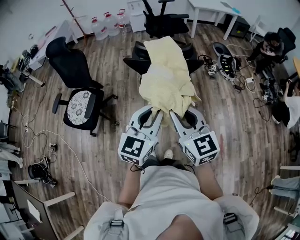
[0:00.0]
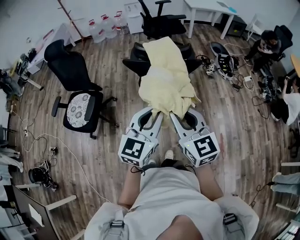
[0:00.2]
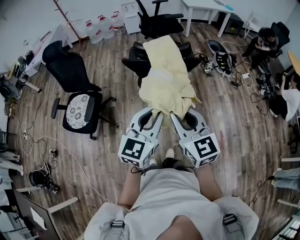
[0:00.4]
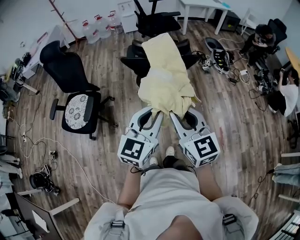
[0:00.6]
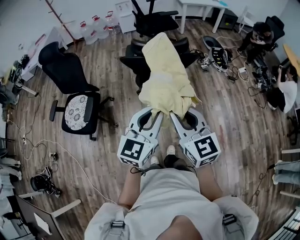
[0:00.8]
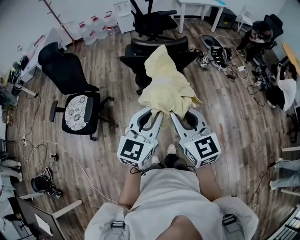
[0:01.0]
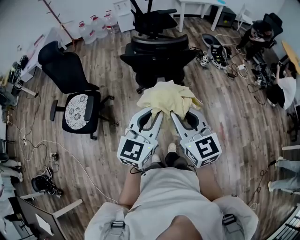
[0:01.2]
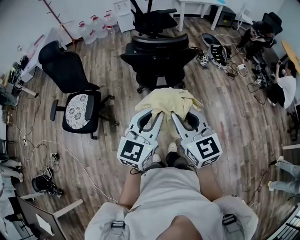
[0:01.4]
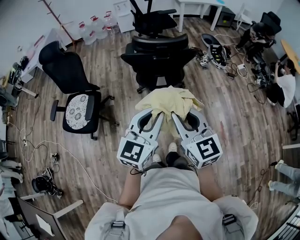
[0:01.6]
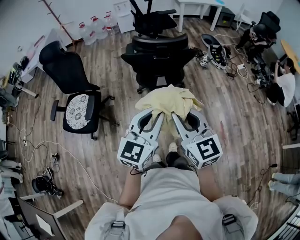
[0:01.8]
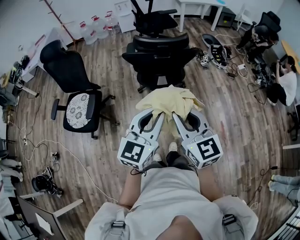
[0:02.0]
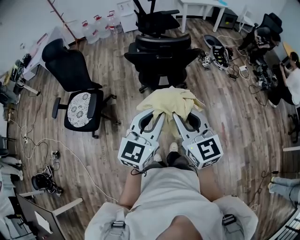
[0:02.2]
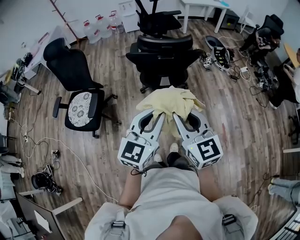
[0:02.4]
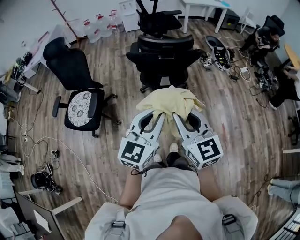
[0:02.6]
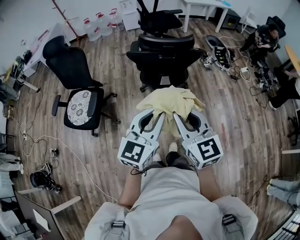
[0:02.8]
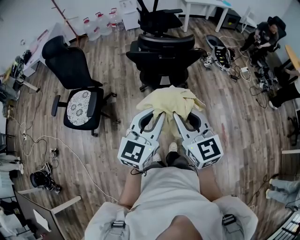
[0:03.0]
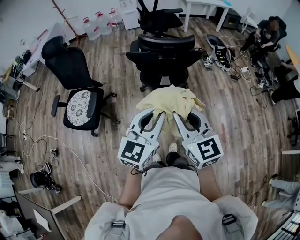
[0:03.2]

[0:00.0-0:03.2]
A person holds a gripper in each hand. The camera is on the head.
0:00.0 to 0:01.6: The grippers both shift backward by approximately 5 cm.
0:01.6 to 0:03.2: The grippers stay close to where they were, moving slightly.

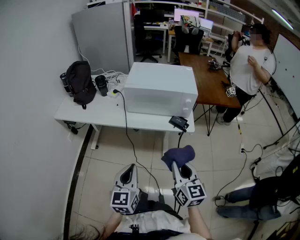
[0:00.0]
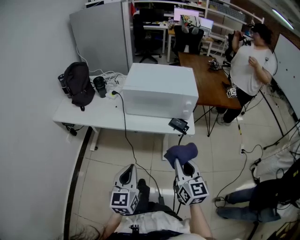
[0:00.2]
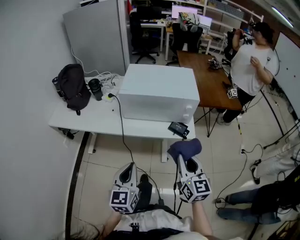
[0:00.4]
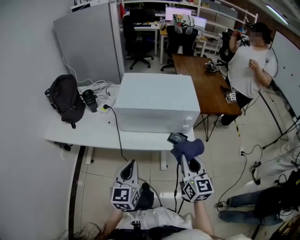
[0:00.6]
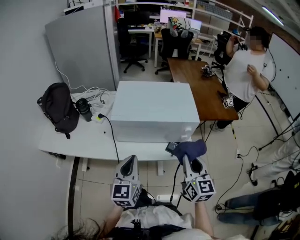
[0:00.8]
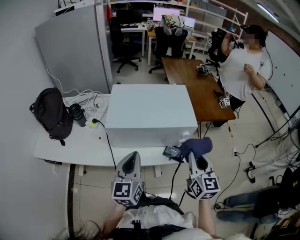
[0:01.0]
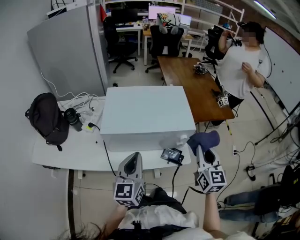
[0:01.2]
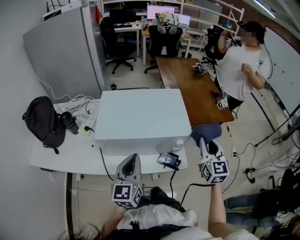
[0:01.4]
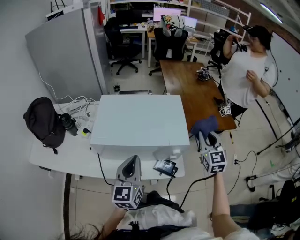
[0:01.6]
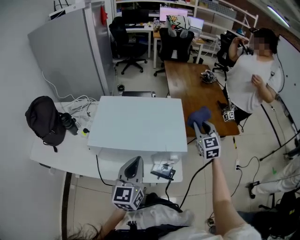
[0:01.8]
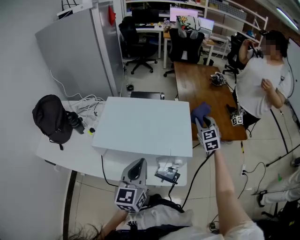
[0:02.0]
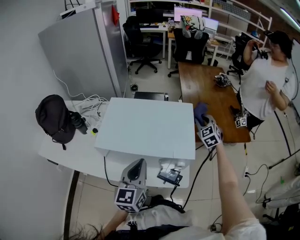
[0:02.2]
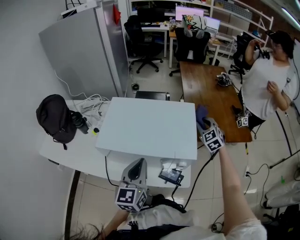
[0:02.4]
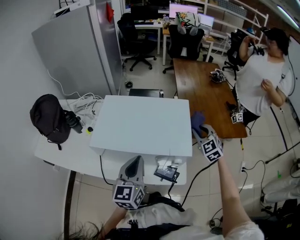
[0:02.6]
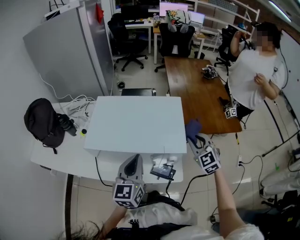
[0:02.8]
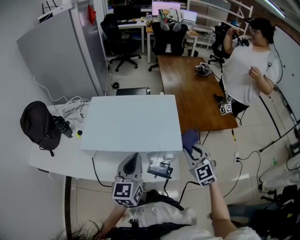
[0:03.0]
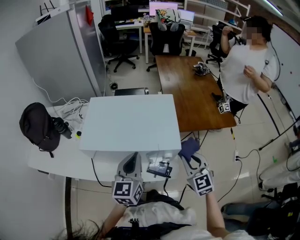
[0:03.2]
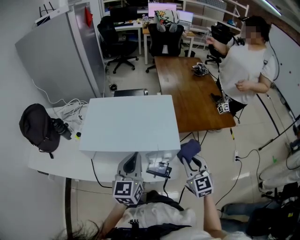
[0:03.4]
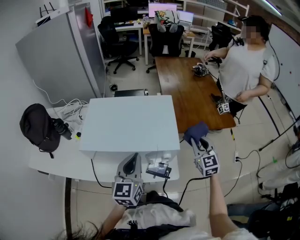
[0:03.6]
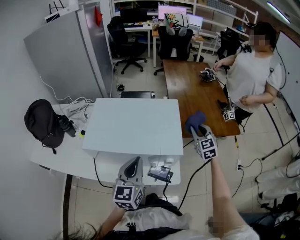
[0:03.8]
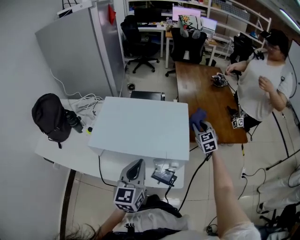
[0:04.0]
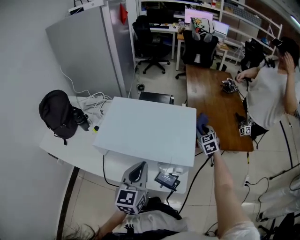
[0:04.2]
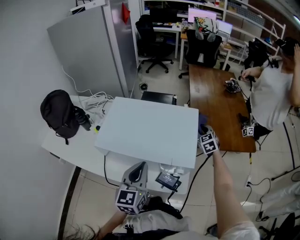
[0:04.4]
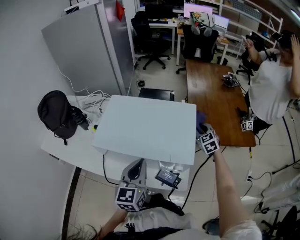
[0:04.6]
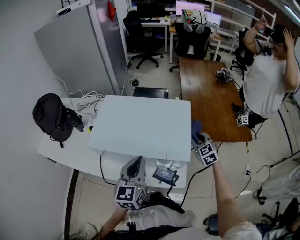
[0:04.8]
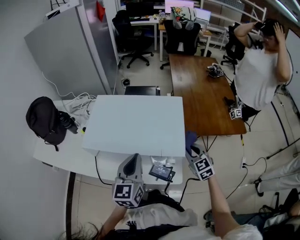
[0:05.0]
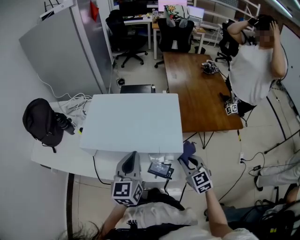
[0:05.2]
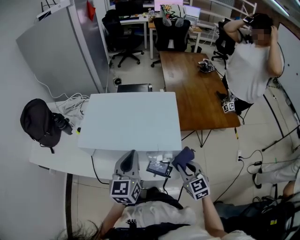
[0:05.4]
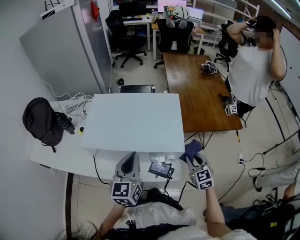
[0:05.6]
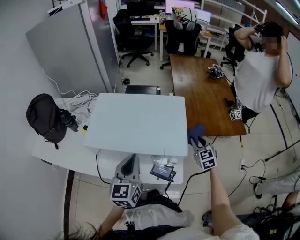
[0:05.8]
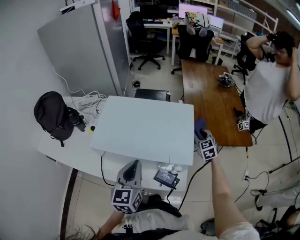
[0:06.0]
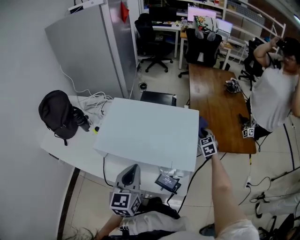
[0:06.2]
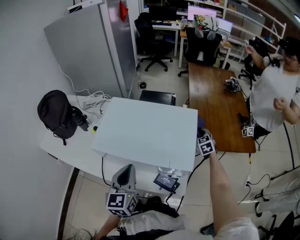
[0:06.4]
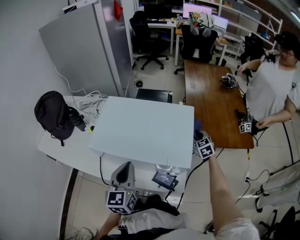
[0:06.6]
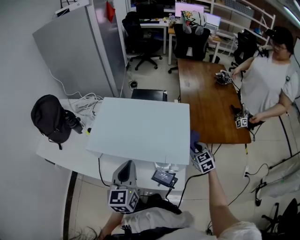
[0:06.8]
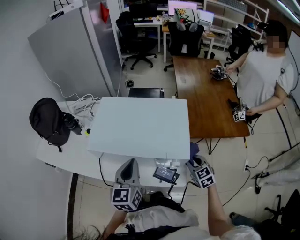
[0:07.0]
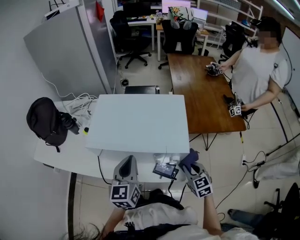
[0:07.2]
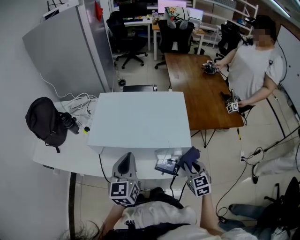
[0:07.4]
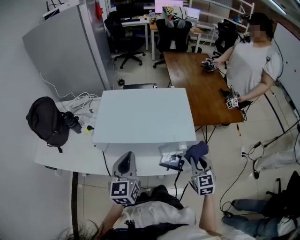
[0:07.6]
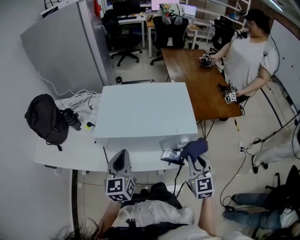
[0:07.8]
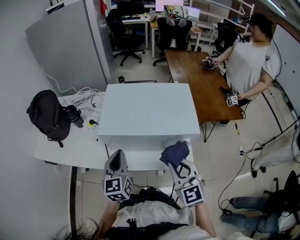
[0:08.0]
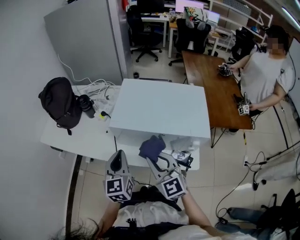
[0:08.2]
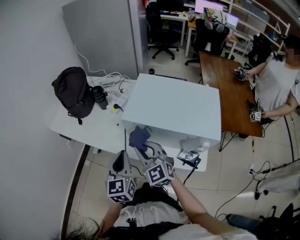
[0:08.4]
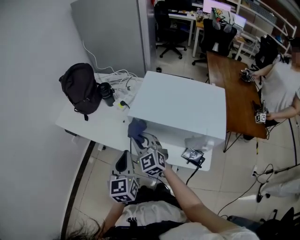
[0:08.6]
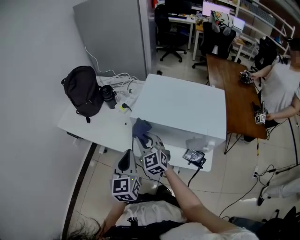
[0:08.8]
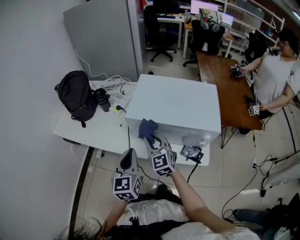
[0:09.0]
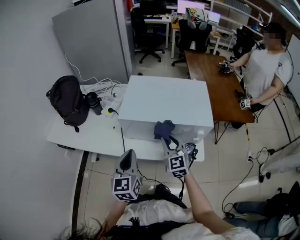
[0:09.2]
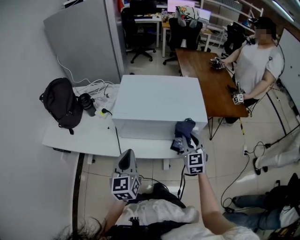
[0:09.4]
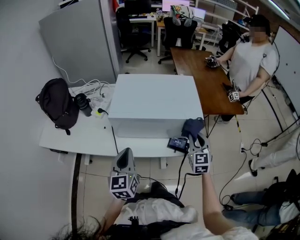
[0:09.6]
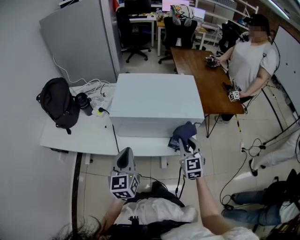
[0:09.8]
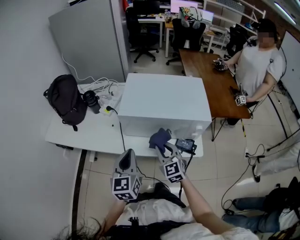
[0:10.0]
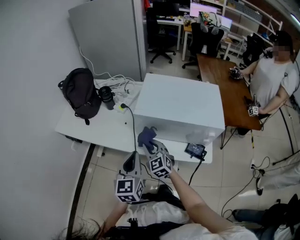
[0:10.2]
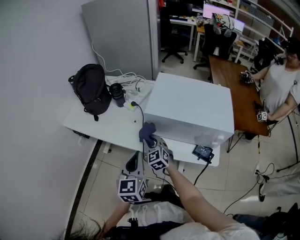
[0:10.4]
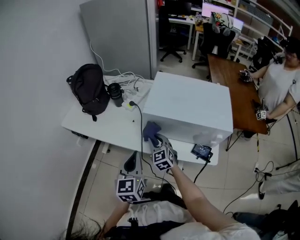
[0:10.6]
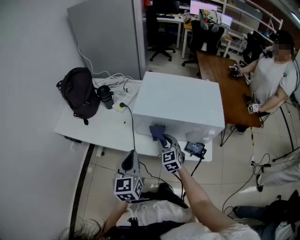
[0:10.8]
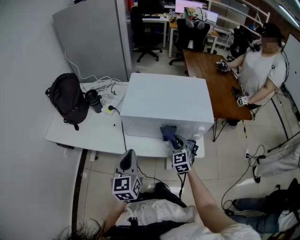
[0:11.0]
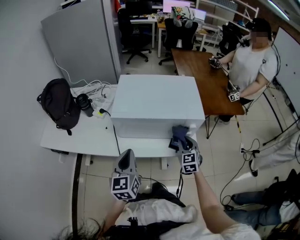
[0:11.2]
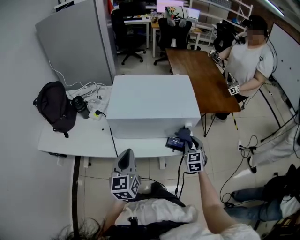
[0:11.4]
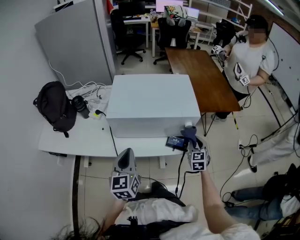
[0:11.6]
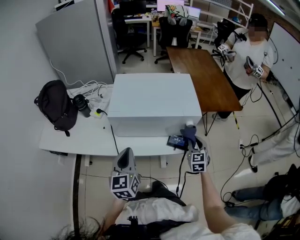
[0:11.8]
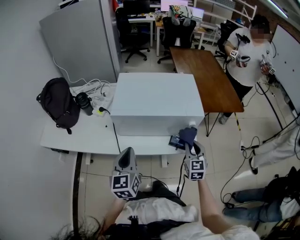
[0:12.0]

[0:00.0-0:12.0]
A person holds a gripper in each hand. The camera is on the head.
0:00.0 to 0:01.6: The right gripper is displaced forward and to the right by approximately 50 cm, and swivels some 30 degrees. The left gripper moves forward, roughly 40 cm.
0:01.6 to 0:03.0: The left gripper shifts about 5 cm to the right, while the right gripper heads downward, covering roughly 5 cm, goes forward and returns, some 20 cm each way, and turns by roughly 20 degrees.
0:03.0 to 0:04.4: The right gripper travels forward by about 25 cm.
0:04.4 to 0:06.0: The right gripper goes backward and returns, roughly 30 cm each way.
0:06.0 to 0:07.6: The right gripper heads backward, covering roughly 25 cm; the left gripper moves to the left, some 5 cm.
0:07.6 to 0:09.0: The left gripper shifts by roughly 15 cm. Meanwhile the right gripper ends up some 35 cm from where it was, and rotates approximately 30 degrees.
0:09.0 to 0:10.4: The right gripper shifts about 10 cm downward, and moves roughly 30 cm to the right and comes back, while the left gripper shifts by about 5 cm.
0:10.4 to 0:12.0: The left gripper changes place by some 10 cm; the right gripper changes place by about 40 cm, and rotates approximately 40 degrees.

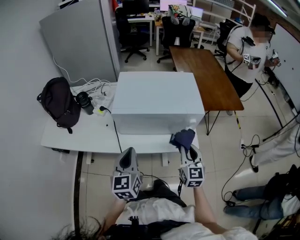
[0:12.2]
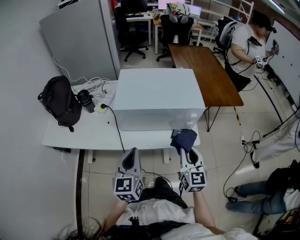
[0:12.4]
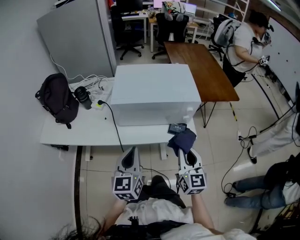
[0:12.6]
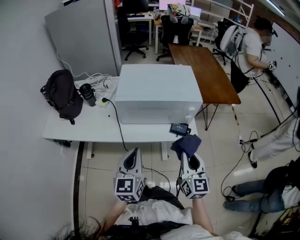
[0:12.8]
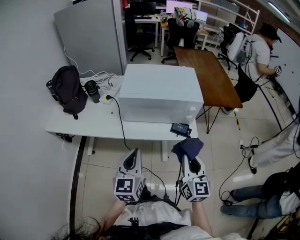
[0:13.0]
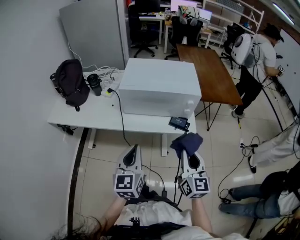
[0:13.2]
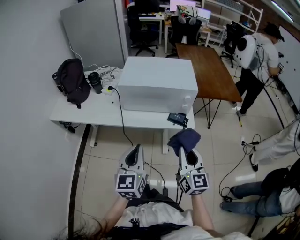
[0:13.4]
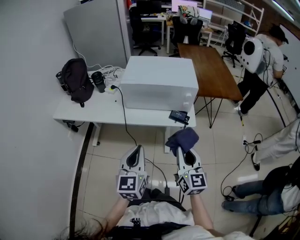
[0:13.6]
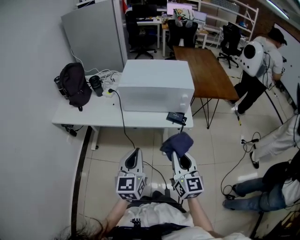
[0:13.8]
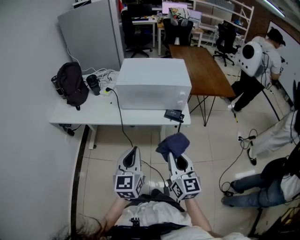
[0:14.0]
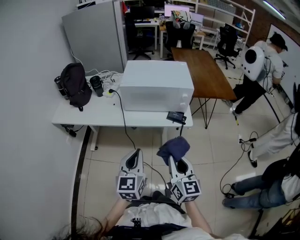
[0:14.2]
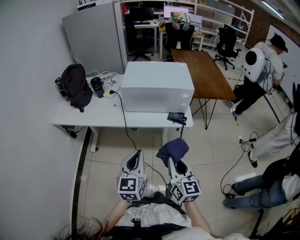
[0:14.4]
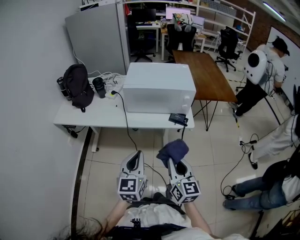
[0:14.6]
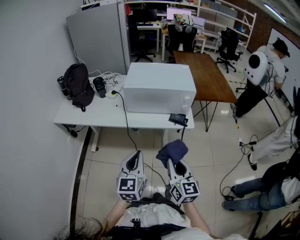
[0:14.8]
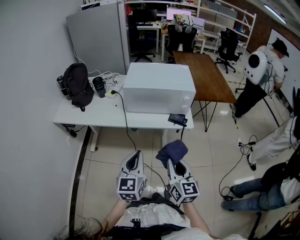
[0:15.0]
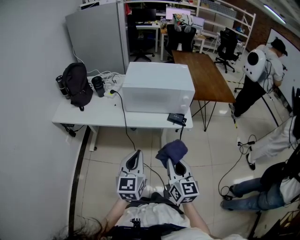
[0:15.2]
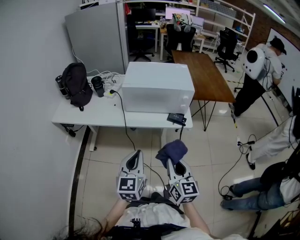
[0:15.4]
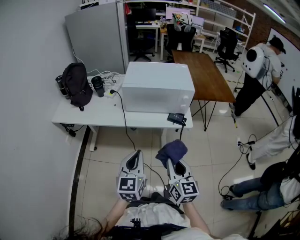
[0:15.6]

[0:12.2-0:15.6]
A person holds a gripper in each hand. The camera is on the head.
0:12.2 to 0:13.8: Both grippers travel together backward, about 20 cm.
0:13.8 to 0:15.6: The right gripper ends up approximately 5 cm from where it was.

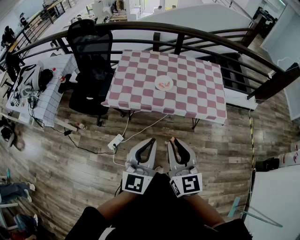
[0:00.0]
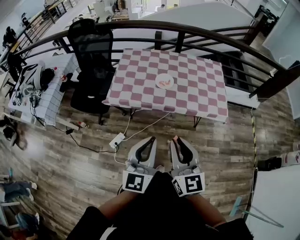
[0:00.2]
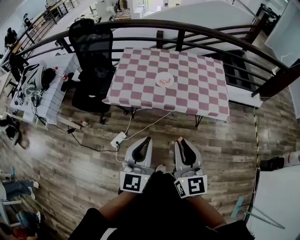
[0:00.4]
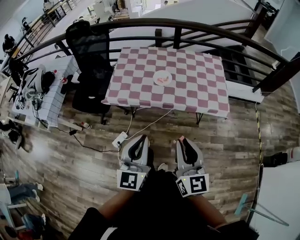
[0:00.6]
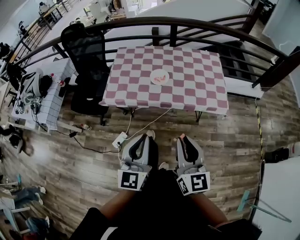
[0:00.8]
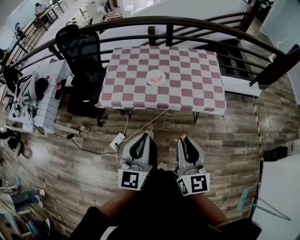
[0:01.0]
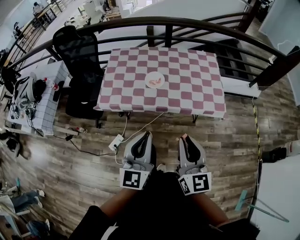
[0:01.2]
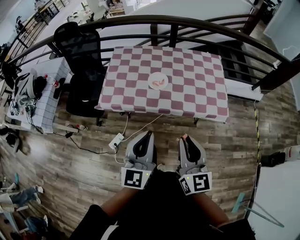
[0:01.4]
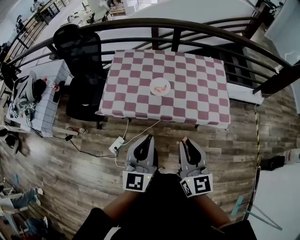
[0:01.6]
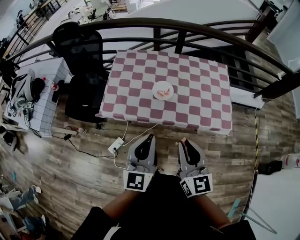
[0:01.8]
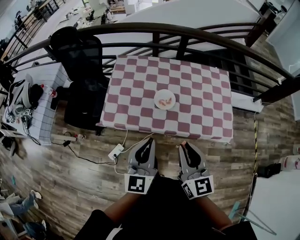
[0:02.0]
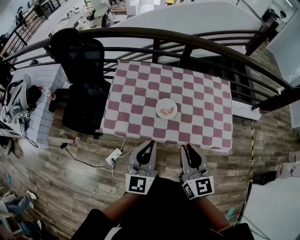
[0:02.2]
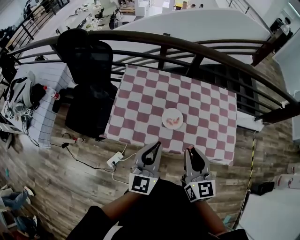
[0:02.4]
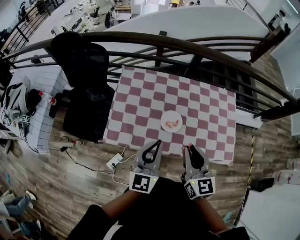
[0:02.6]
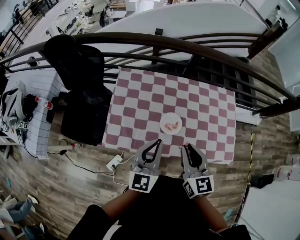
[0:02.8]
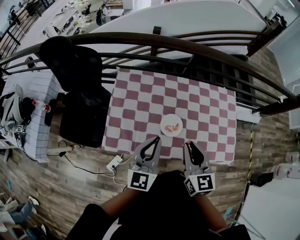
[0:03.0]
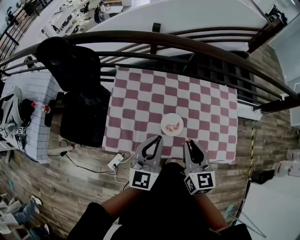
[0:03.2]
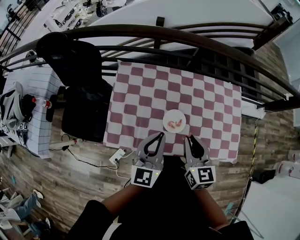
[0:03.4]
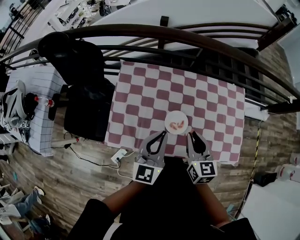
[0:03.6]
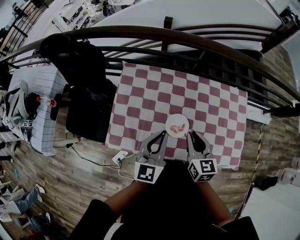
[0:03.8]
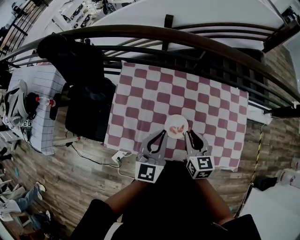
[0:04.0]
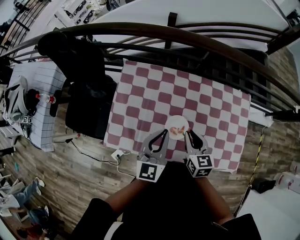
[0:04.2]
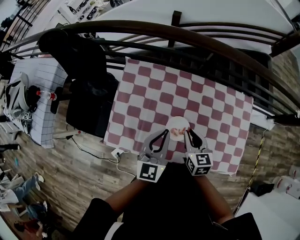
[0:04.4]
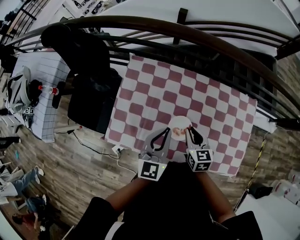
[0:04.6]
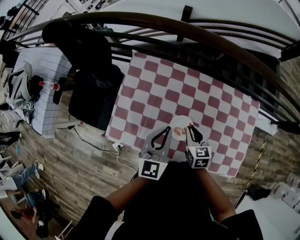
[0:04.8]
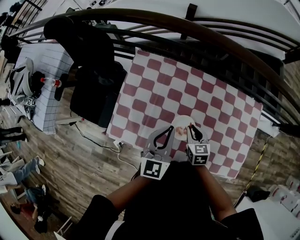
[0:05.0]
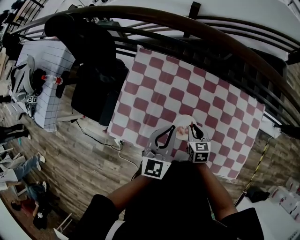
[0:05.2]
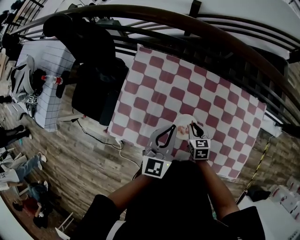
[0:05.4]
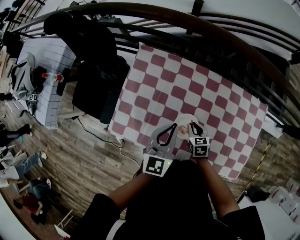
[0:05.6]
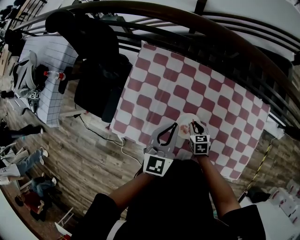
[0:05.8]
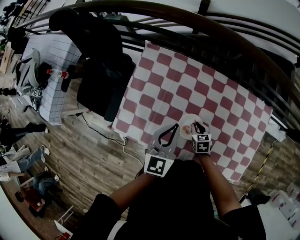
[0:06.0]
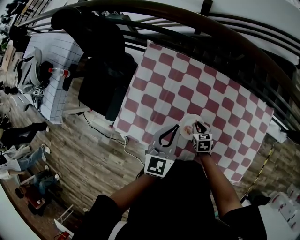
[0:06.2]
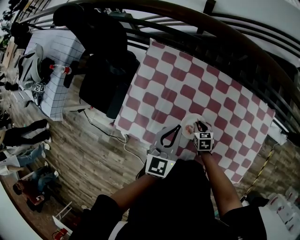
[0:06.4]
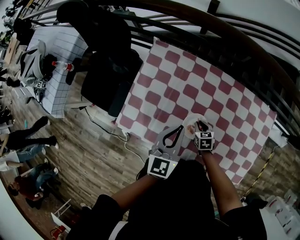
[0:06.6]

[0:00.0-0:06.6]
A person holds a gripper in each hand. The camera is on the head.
0:00.0 to 0:01.6: The left gripper moves forward, about 10 cm; the right gripper travels forward and to the right by approximately 15 cm.
0:01.6 to 0:03.2: Both grippers travel together forward, about 30 cm.
0:03.2 to 0:05.0: The left gripper travels forward and downward by roughly 15 cm. Meanwhile the right gripper moves downward and forward, approximately 25 cm, and rotates approximately 30 degrees.
0:05.0 to 0:06.6: The right gripper heads downward, covering about 15 cm.
